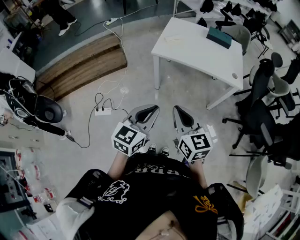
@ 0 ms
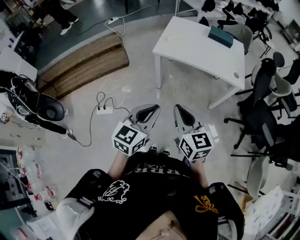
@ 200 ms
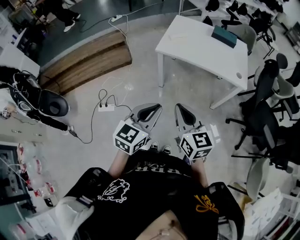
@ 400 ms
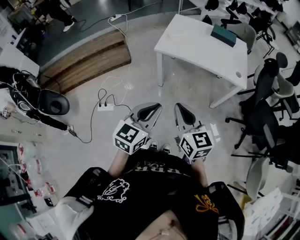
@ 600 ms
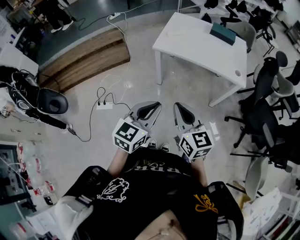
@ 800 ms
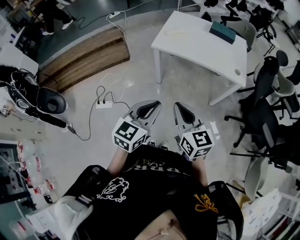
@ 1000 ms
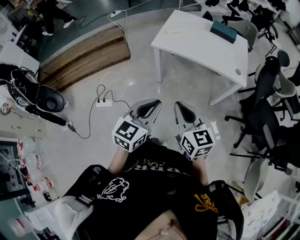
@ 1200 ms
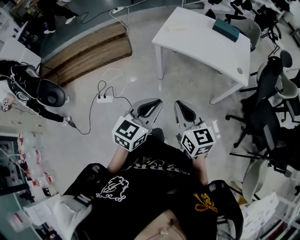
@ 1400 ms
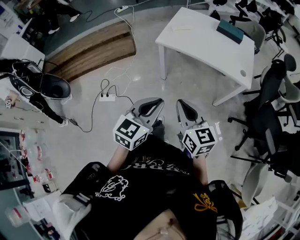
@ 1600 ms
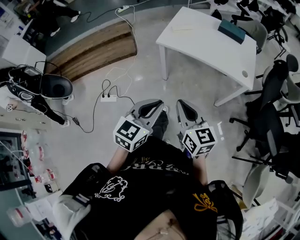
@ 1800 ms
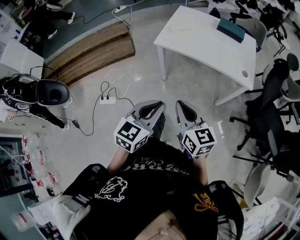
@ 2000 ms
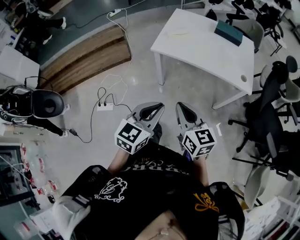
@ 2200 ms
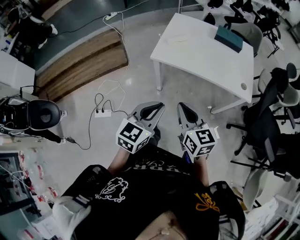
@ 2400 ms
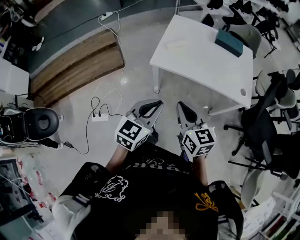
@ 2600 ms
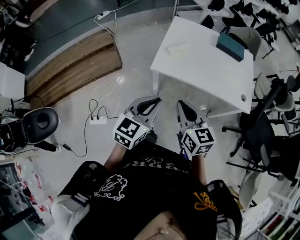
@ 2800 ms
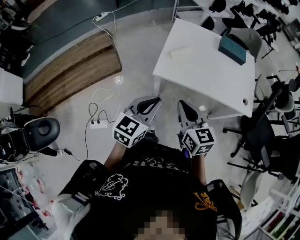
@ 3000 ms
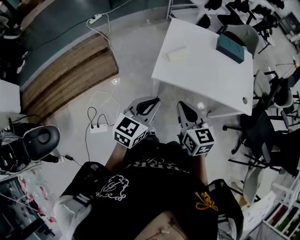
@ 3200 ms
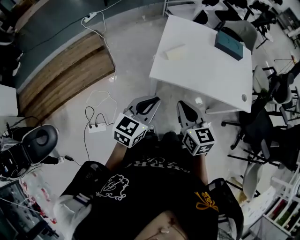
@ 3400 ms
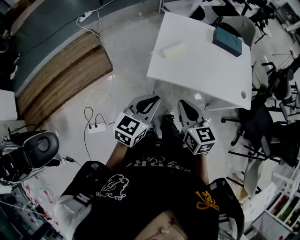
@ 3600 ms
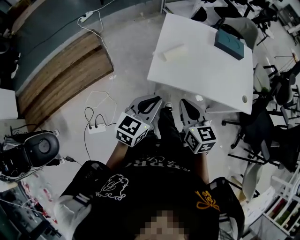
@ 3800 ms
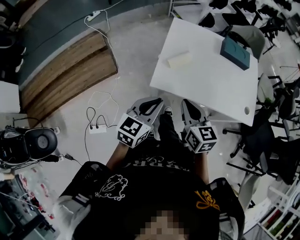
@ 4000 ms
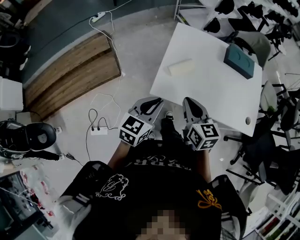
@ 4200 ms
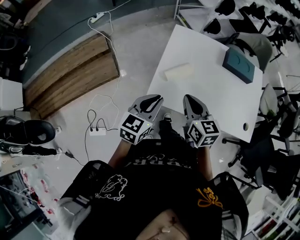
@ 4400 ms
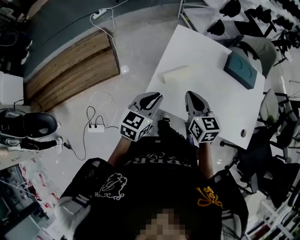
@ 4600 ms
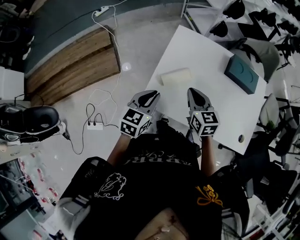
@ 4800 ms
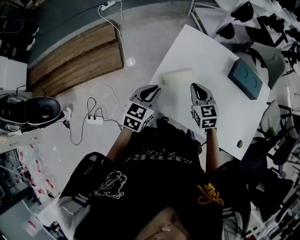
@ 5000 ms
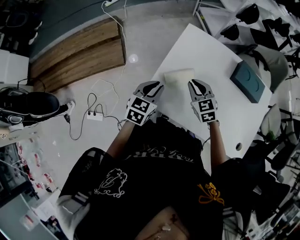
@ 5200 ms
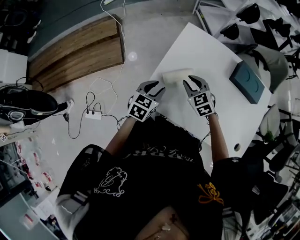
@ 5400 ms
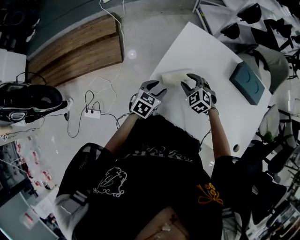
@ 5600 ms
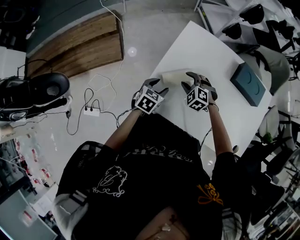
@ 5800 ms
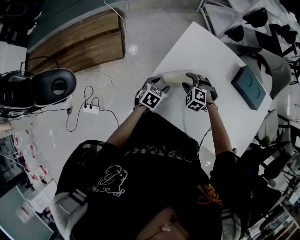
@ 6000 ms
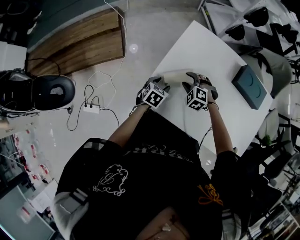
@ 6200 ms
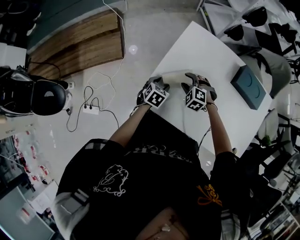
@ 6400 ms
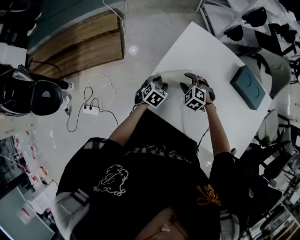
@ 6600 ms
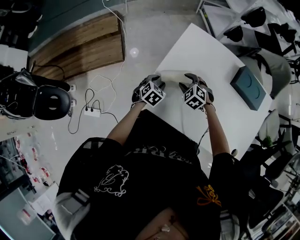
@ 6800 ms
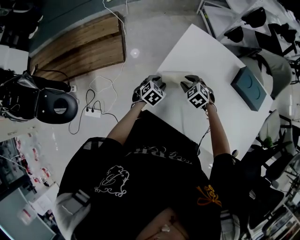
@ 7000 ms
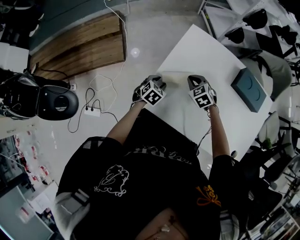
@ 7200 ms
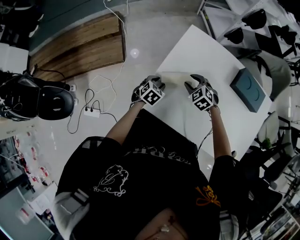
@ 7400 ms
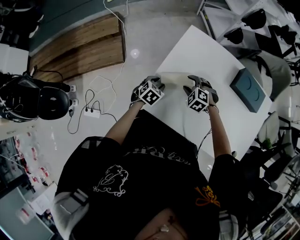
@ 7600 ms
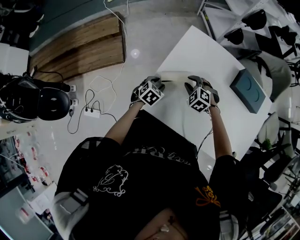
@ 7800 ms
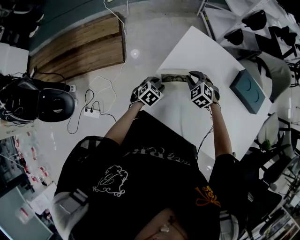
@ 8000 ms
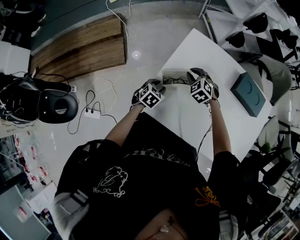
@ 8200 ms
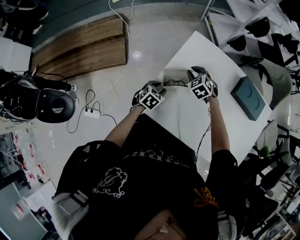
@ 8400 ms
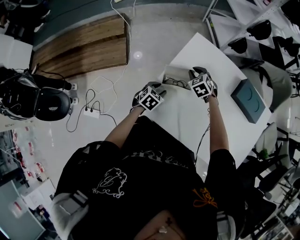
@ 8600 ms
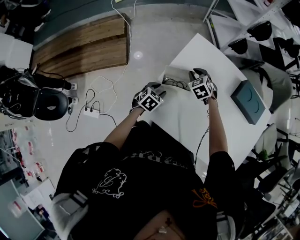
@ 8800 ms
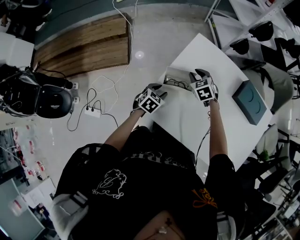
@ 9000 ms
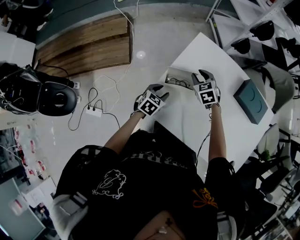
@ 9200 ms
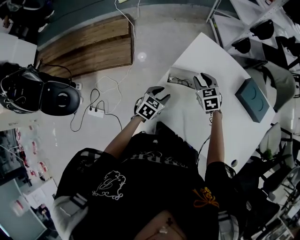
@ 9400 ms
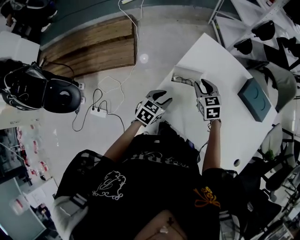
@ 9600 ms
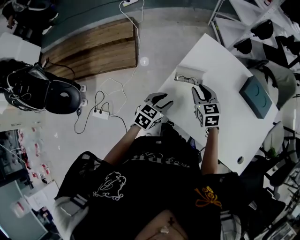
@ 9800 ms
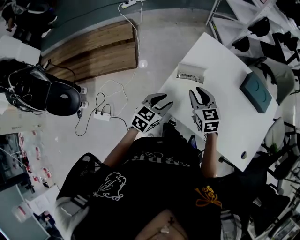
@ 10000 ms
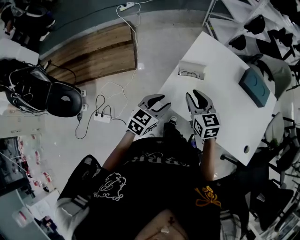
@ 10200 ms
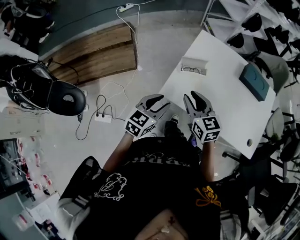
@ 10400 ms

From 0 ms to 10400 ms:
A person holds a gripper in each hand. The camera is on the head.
From 0 ms to 1400 ms: Both grippers move to the right, approximately 5 cm.
From 1400 ms to 3000 ms: The left gripper travels forward and to the left by some 35 cm. Meanwhile the right gripper goes about 35 cm forward.
From 3000 ms to 4400 ms: Both grippers travel together forward, some 25 cm.
From 4400 ms to 6000 ms: The grippers both shift downward and forward by approximately 30 cm. The right gripper rotates around the line of its fingers by roughly 80 degrees, counterclockwise from behind, and opens up, while the left gripper turns by approximately 30 degrees, and opens its fingers.
From 6000 ms to 7400 ms: The right gripper swivels about 20 degrees, and closes and opens again.
From 7400 ms to 9000 ms: The right gripper shifts about 10 cm forward.
From 9000 ms to 10400 ms: Both grippers travel together backward and upward, roughly 30 cm. The left gripper turns by about 30 degrees, while the right gripper changes its angle by roughly 40 degrees.

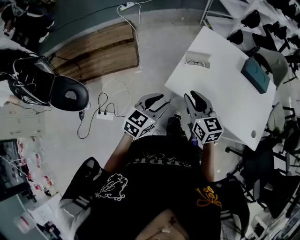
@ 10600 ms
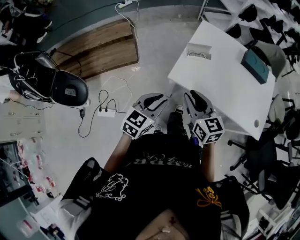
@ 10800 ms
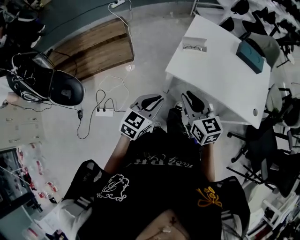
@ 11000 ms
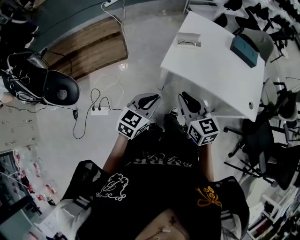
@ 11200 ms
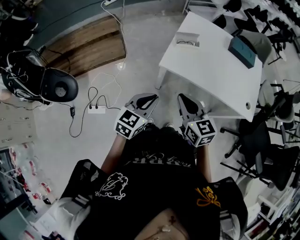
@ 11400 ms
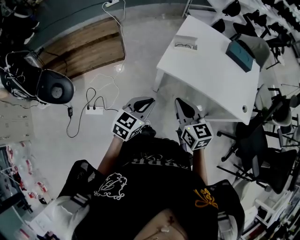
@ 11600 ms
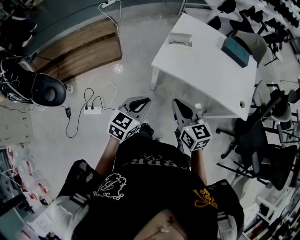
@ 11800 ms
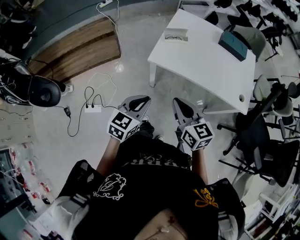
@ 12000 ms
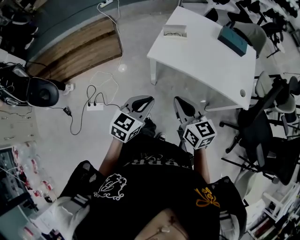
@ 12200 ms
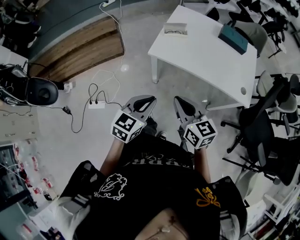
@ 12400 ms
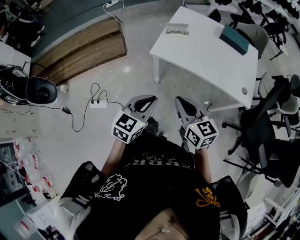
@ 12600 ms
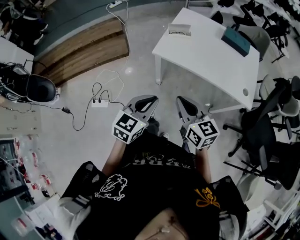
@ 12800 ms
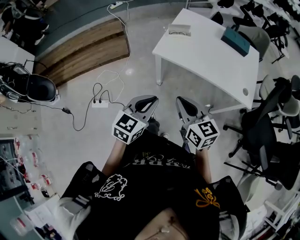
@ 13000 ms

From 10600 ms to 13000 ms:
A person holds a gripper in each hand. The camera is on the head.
From 10600 ms to 11800 ms: The two grippers go some 20 cm backward. The right gripper closes up; the left gripper closes its fingers.
From 11800 ms to 13000 ms: The two grippers go approximately 15 cm backward and to the right.

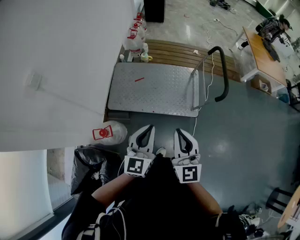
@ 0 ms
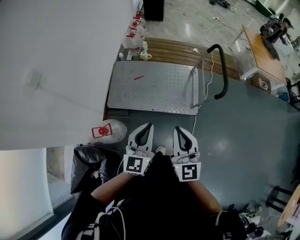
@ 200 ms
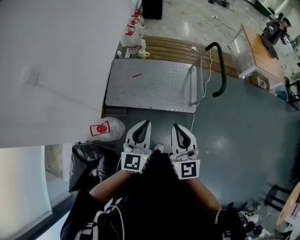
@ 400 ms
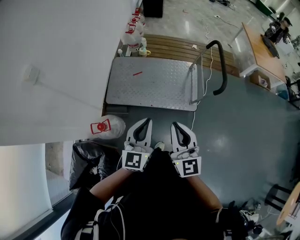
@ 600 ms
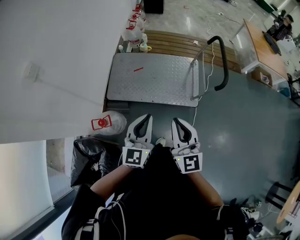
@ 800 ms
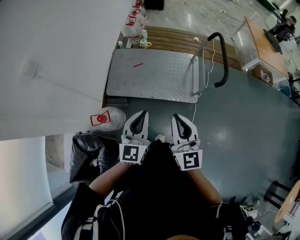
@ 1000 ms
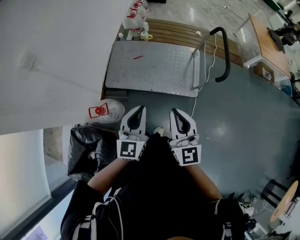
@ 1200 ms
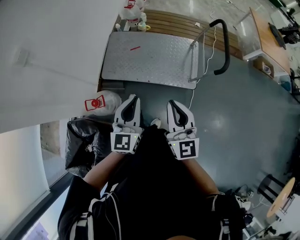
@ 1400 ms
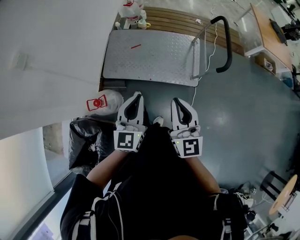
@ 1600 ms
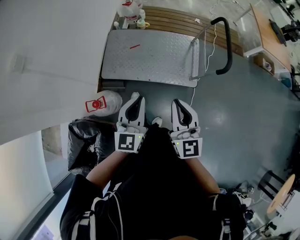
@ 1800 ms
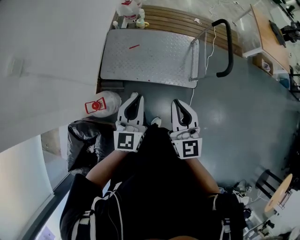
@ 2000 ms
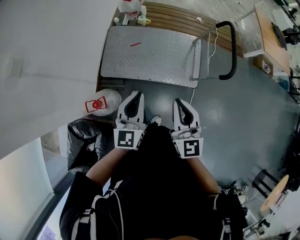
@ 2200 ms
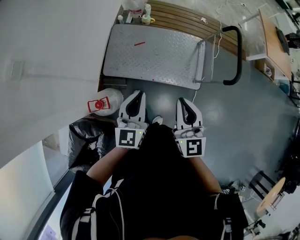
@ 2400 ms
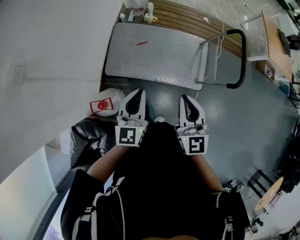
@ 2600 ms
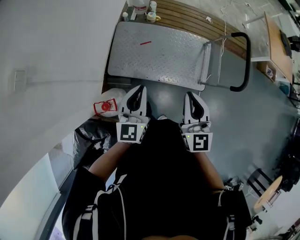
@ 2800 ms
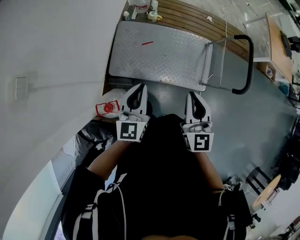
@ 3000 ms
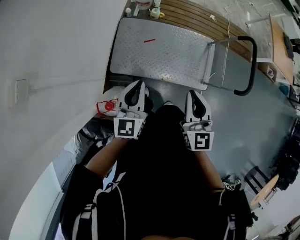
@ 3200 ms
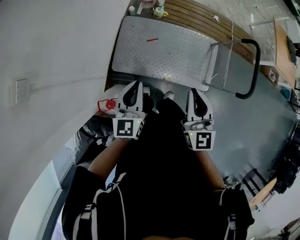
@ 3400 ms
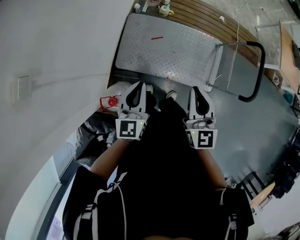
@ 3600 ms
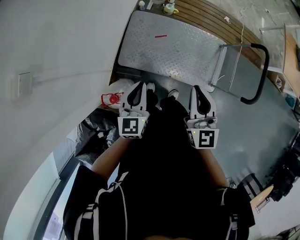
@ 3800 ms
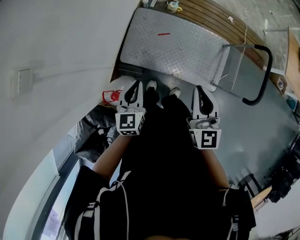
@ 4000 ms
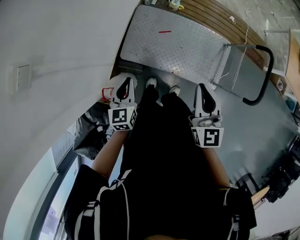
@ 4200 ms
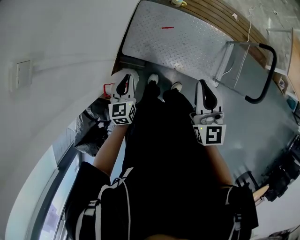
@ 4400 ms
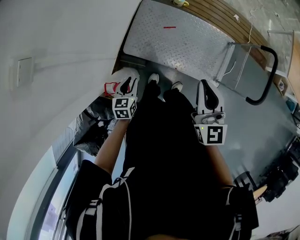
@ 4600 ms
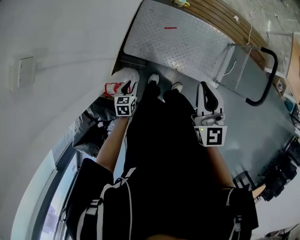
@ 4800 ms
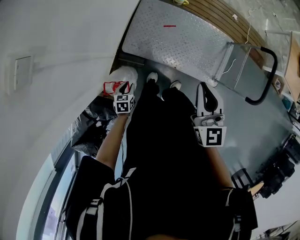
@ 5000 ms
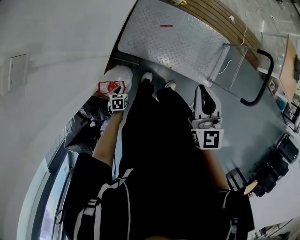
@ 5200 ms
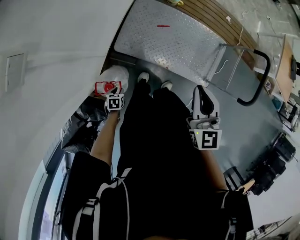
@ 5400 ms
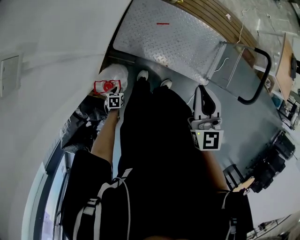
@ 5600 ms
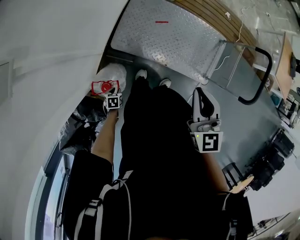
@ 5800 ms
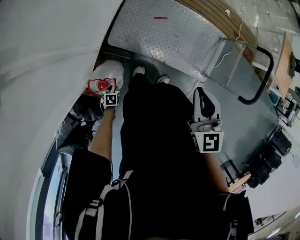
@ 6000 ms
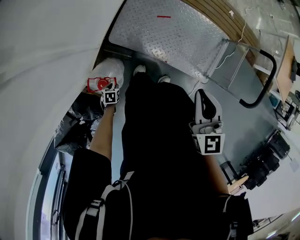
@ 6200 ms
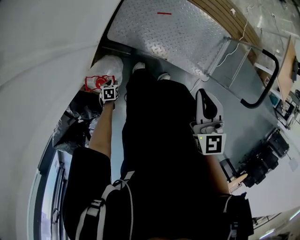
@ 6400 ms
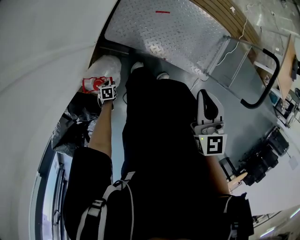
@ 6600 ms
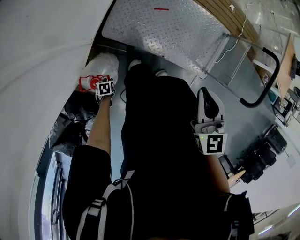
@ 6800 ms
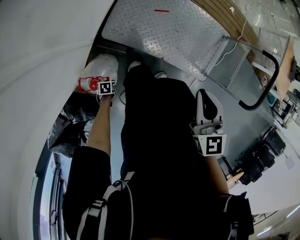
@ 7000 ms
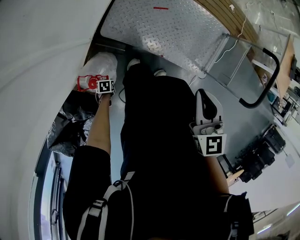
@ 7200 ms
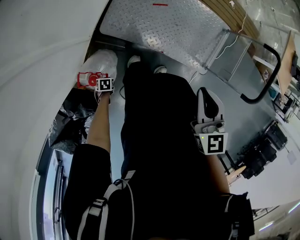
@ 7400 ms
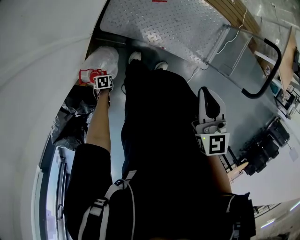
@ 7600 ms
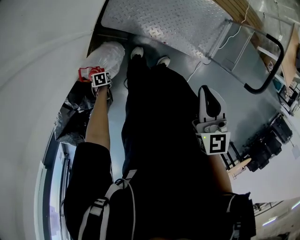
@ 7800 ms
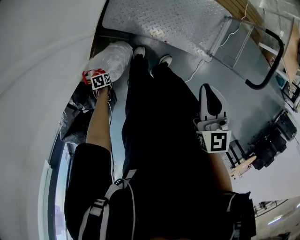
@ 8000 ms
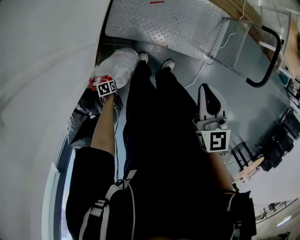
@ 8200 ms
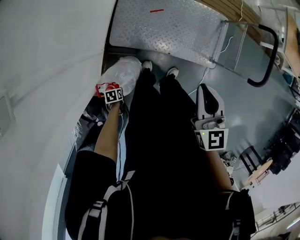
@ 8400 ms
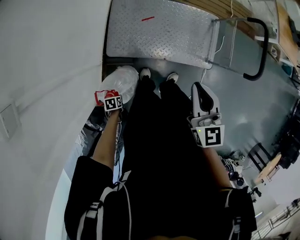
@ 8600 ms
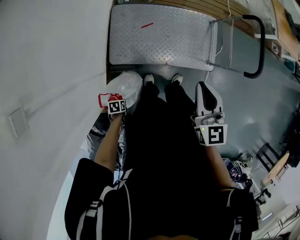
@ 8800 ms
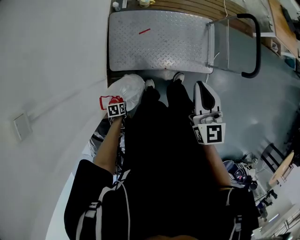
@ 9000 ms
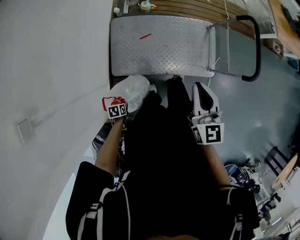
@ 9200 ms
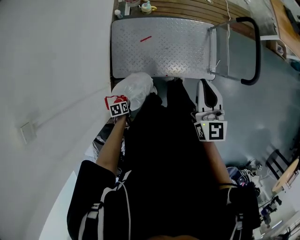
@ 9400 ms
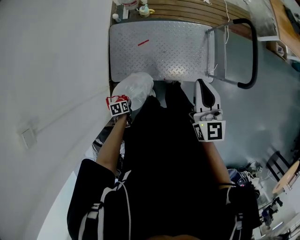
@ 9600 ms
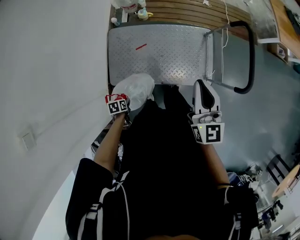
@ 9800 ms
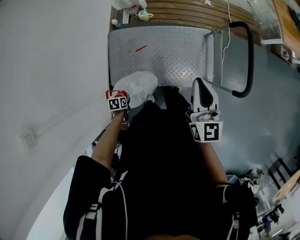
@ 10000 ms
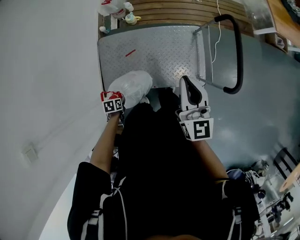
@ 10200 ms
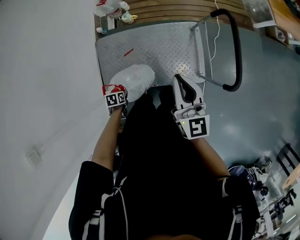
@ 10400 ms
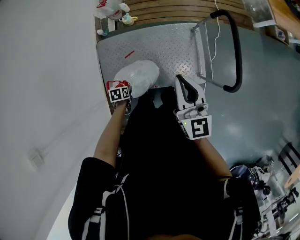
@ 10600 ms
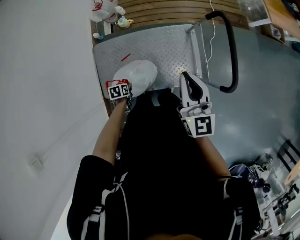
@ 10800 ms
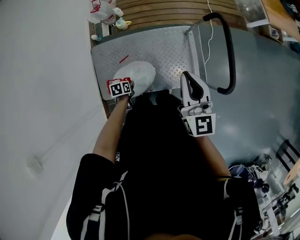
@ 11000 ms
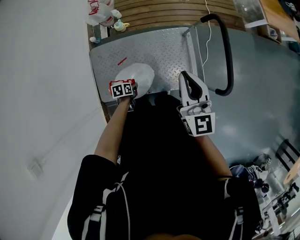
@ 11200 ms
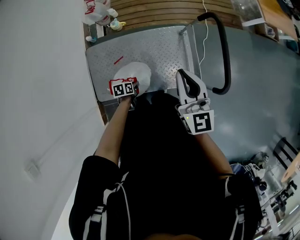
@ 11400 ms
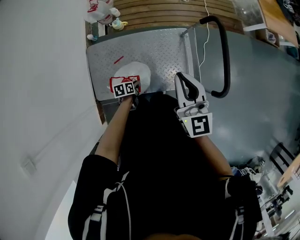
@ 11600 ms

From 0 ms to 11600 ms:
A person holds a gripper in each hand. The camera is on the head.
From 0 ms to 1400 ms: There are only small adjustments of the grippers.
From 1400 ms to 2800 ms: Both grippers move forward and to the left, some 20 cm.
From 2800 ms to 4400 ms: The left gripper moves to the left and downward, approximately 20 cm, and turns by approximately 30 degrees, while the right gripper moves forward and to the left, about 10 cm.
From 4400 ms to 5800 ms: The left gripper is displaced downward and backward by about 35 cm, points its fingers roughly 40 degrees further downward, and opens. The right gripper shifts some 5 cm to the left.
From 5800 ms to 7200 ms: Both grippers travel together downward, about 10 cm.
From 7200 ms to 8800 ms: The right gripper moves upward, roughly 10 cm, and rotates some 20 degrees. The left gripper goes about 20 cm upward.
From 8800 ms to 10200 ms: The right gripper moves some 25 cm. The left gripper moves roughly 30 cm.
From 10200 ms to 11600 ms: The left gripper changes place by roughly 25 cm. The right gripper shifts by approximately 10 cm.
